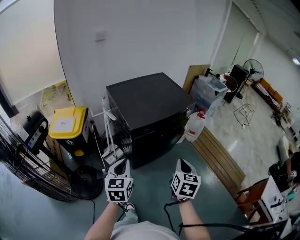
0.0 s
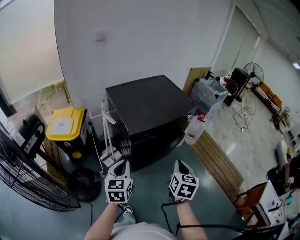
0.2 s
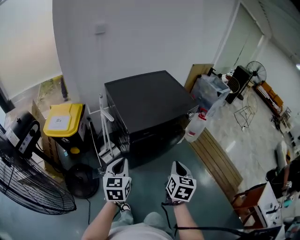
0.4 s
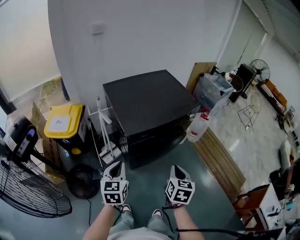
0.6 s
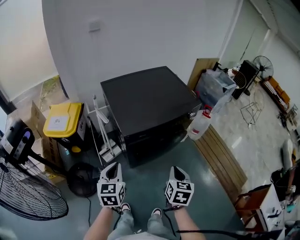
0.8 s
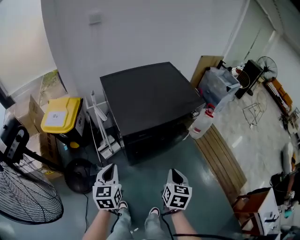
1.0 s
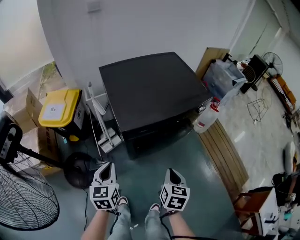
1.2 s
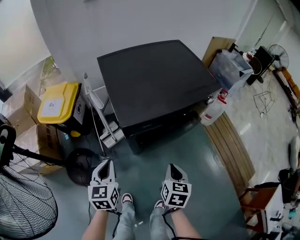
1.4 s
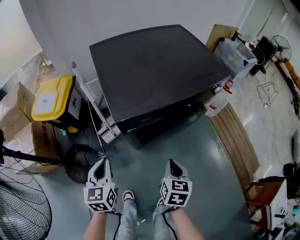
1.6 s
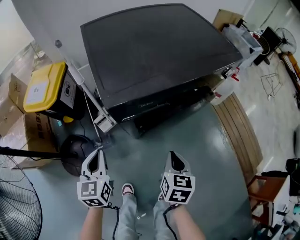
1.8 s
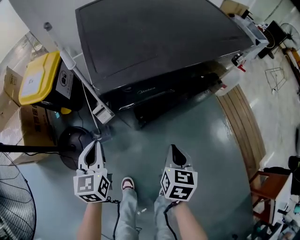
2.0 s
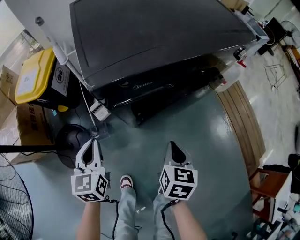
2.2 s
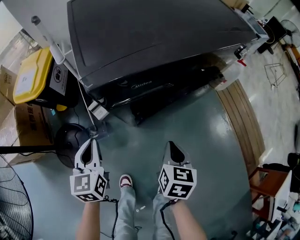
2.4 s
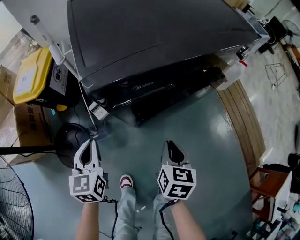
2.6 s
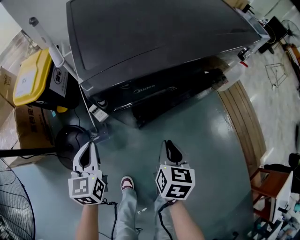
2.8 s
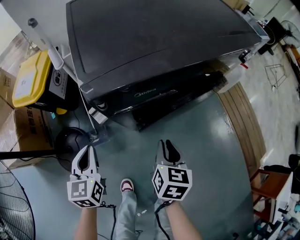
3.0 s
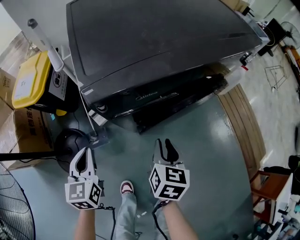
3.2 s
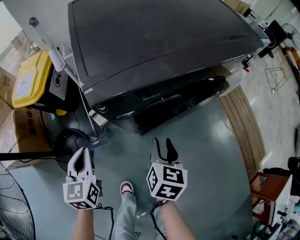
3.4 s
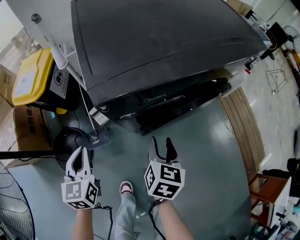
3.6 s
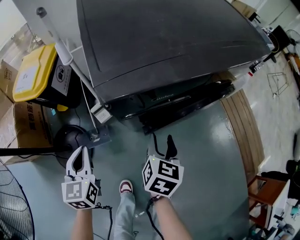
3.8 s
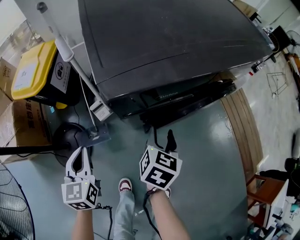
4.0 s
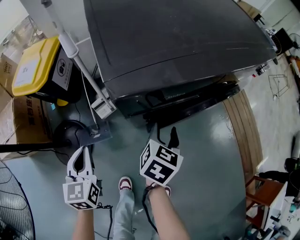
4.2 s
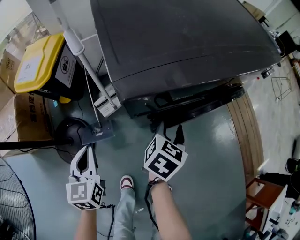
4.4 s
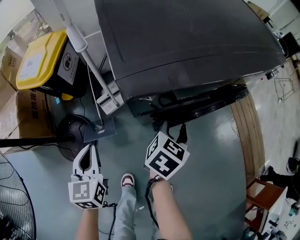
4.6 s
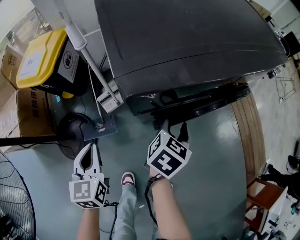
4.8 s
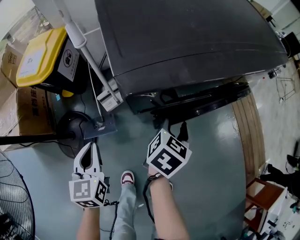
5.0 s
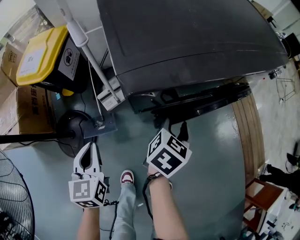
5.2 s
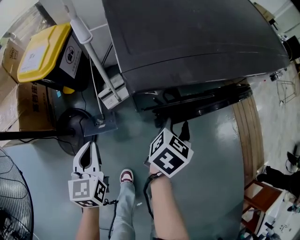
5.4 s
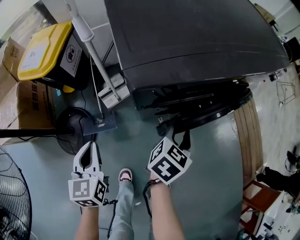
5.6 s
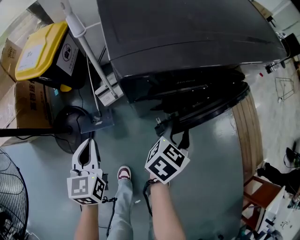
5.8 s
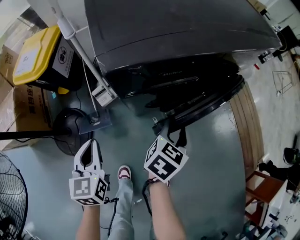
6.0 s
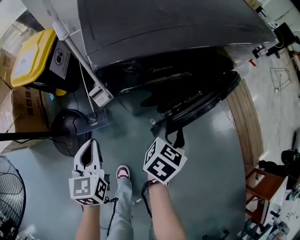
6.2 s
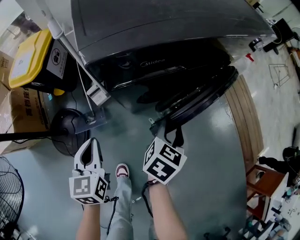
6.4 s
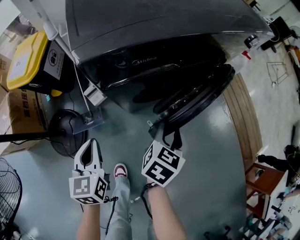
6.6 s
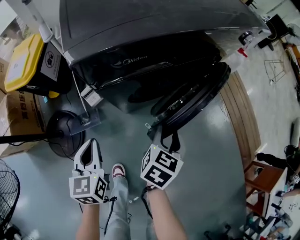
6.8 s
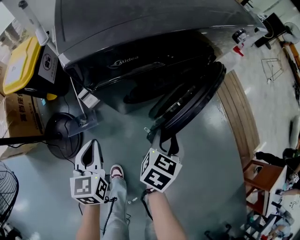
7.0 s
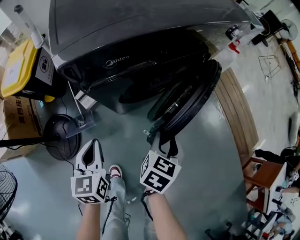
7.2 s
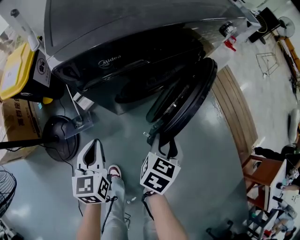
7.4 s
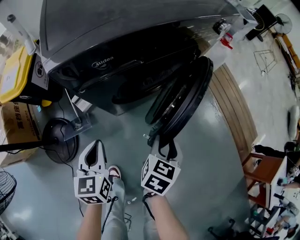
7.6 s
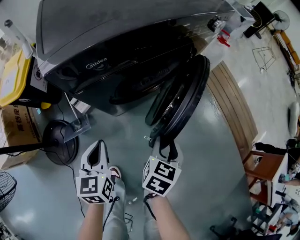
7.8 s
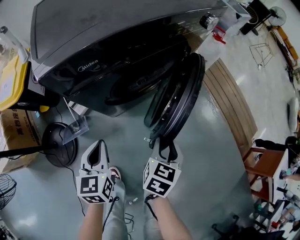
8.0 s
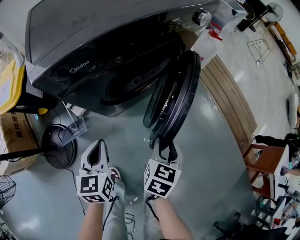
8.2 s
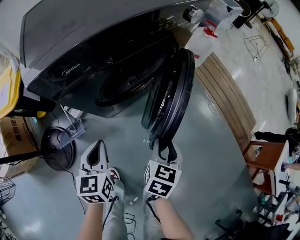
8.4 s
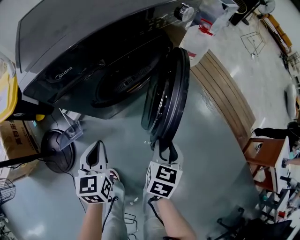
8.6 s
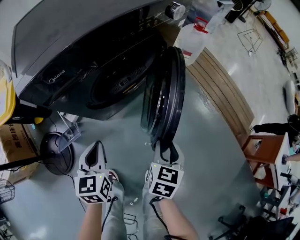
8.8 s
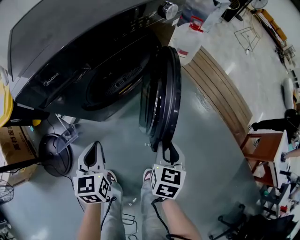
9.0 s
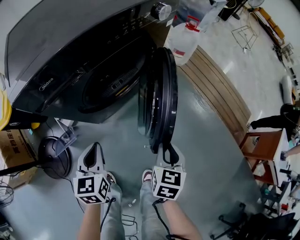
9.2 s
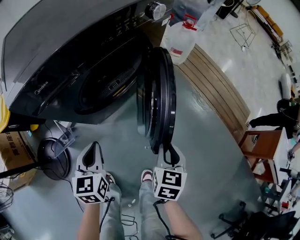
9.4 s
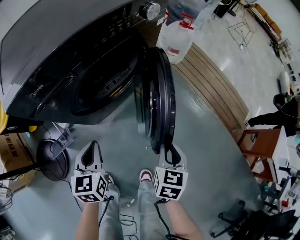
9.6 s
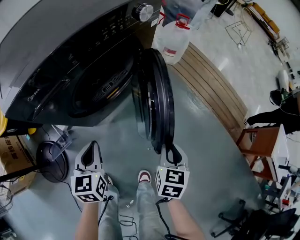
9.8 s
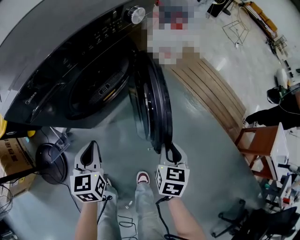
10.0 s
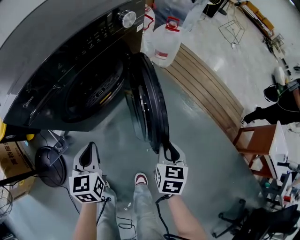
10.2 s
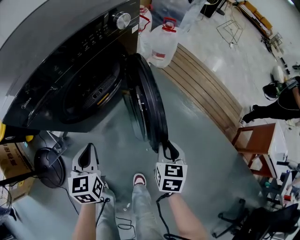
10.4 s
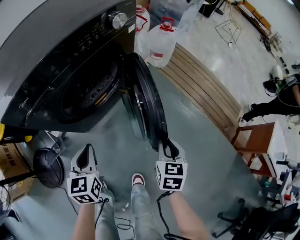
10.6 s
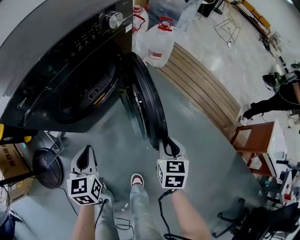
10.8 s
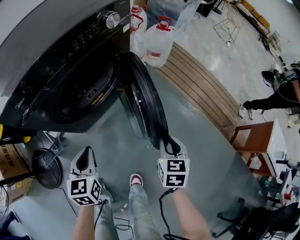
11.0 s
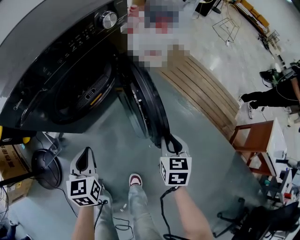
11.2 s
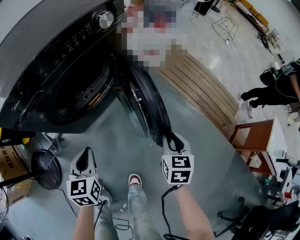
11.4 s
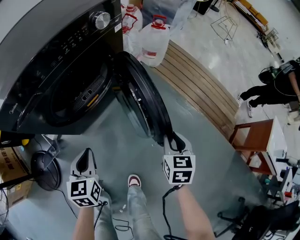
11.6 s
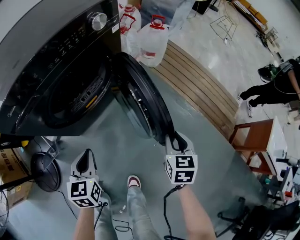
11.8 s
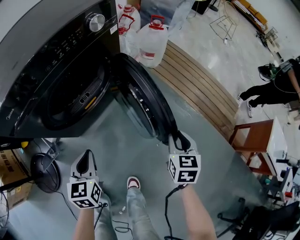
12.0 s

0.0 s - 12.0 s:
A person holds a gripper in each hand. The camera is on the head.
0.0 s - 1.6 s: The grippers both shift downward and forward by about 25 cm.
1.6 s - 3.0 s: The right gripper is displaced downward and forward by approximately 15 cm, while the left gripper goes approximately 10 cm downward.
3.0 s - 4.4 s: The right gripper goes approximately 10 cm forward, and opens; the left gripper heads to the left, covering approximately 5 cm.
4.4 s - 6.0 s: The right gripper shifts approximately 5 cm backward.
6.0 s - 7.6 s: The right gripper shifts roughly 15 cm to the right and backward, while the left gripper is displaced to the right by some 15 cm.
7.6 s - 9.0 s: The two grippers go about 10 cm to the right.
9.0 s - 10.4 s: The two grippers go some 10 cm to the right.
10.4 s - 12.0 s: The left gripper heads to the right, covering approximately 5 cm. Meanwhile the right gripper shifts some 10 cm to the right.

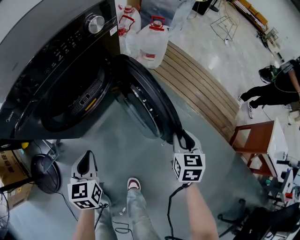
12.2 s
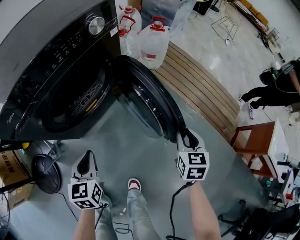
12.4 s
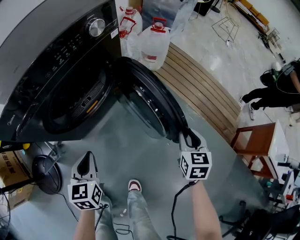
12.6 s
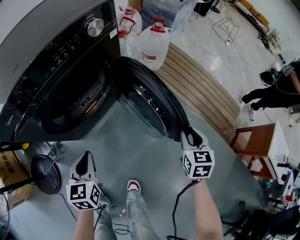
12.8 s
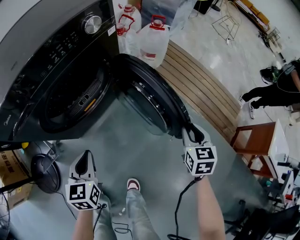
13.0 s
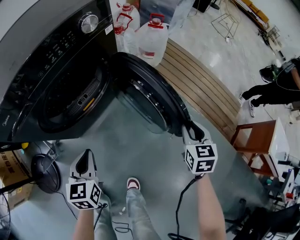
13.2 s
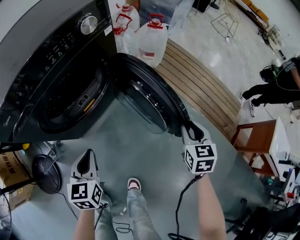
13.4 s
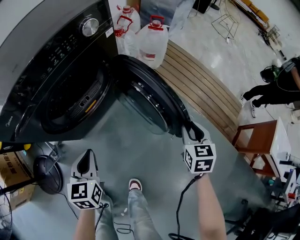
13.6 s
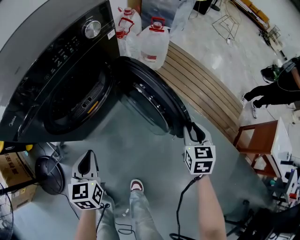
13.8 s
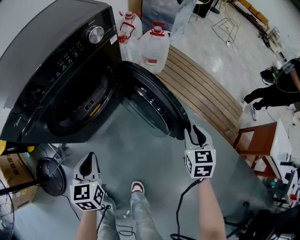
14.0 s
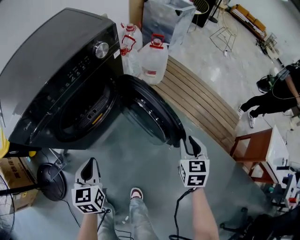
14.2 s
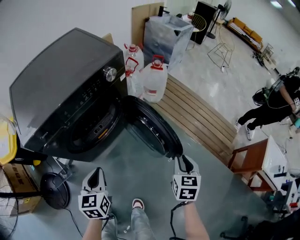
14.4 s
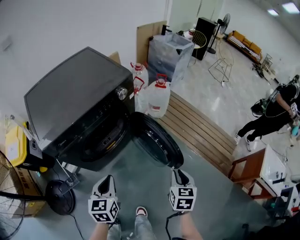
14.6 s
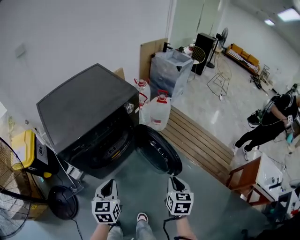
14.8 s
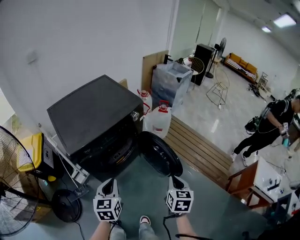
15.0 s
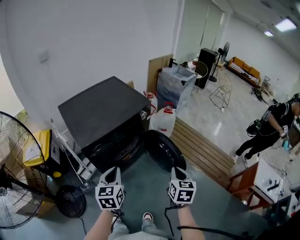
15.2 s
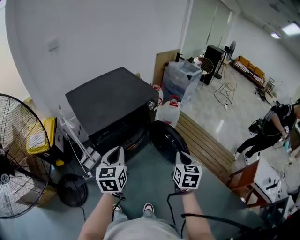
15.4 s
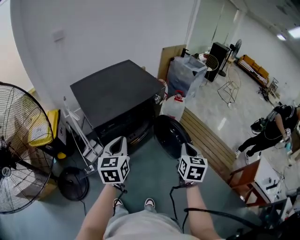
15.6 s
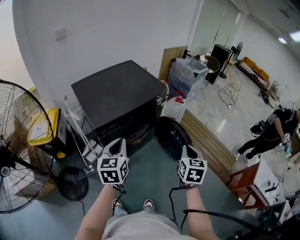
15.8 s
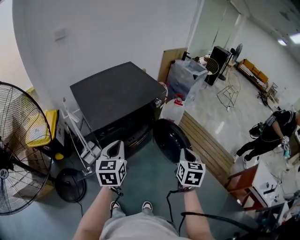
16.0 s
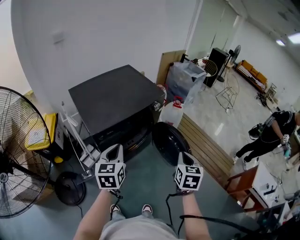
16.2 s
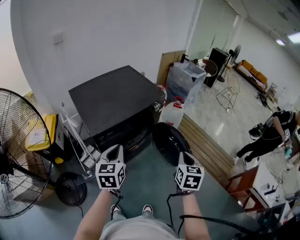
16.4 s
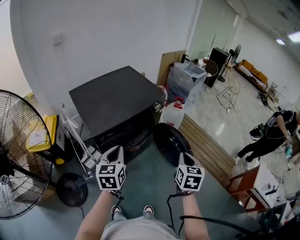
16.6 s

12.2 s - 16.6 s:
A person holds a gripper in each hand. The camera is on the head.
12.2 s - 13.6 s: The right gripper changes place by roughly 5 cm.
13.6 s - 15.2 s: The right gripper is displaced upward, to the left and backward by roughly 40 cm, and closes up, while the left gripper moves upward, some 35 cm.
15.2 s - 16.6 s: The right gripper shifts by about 5 cm; the left gripper travels to the left by some 5 cm.

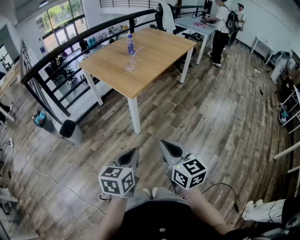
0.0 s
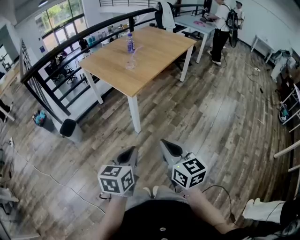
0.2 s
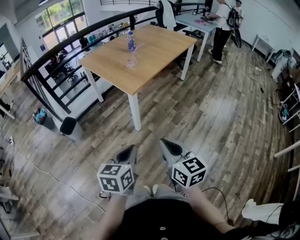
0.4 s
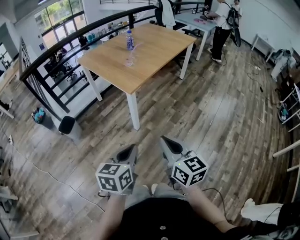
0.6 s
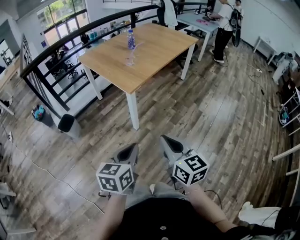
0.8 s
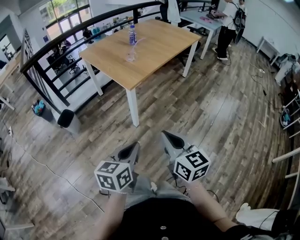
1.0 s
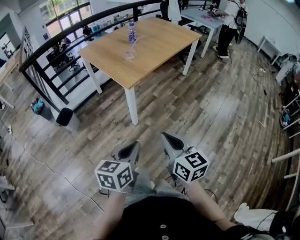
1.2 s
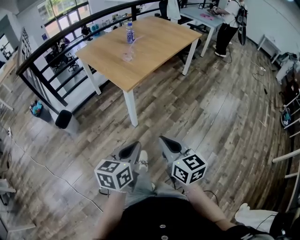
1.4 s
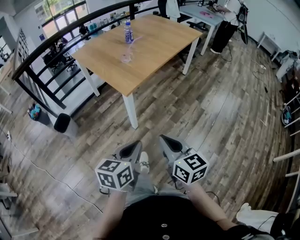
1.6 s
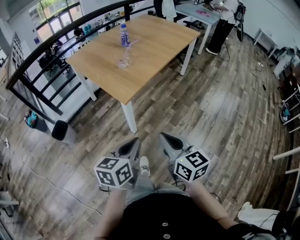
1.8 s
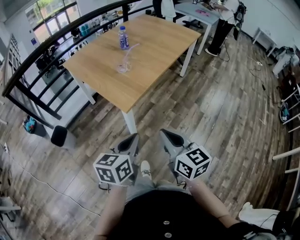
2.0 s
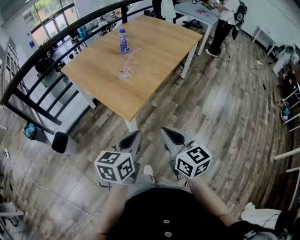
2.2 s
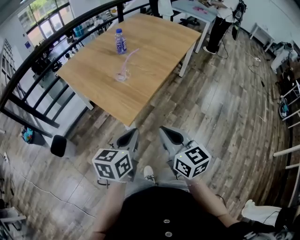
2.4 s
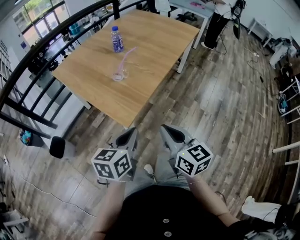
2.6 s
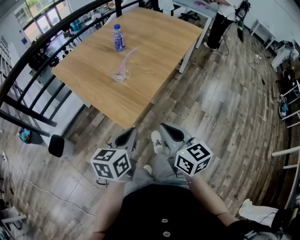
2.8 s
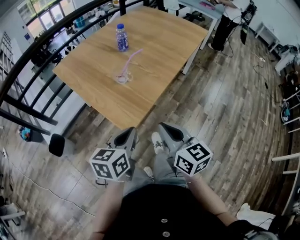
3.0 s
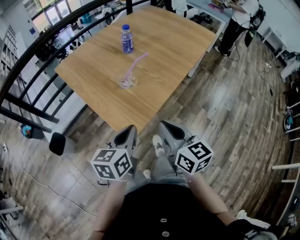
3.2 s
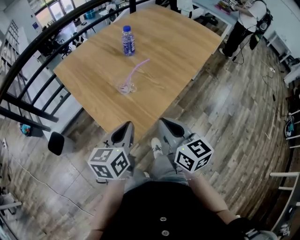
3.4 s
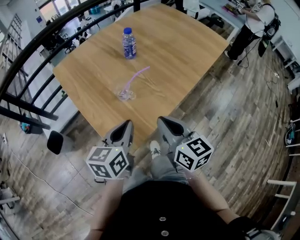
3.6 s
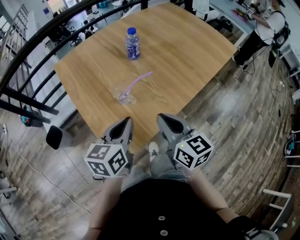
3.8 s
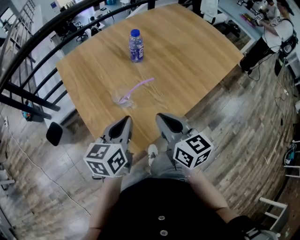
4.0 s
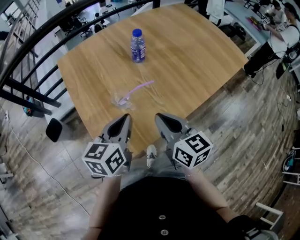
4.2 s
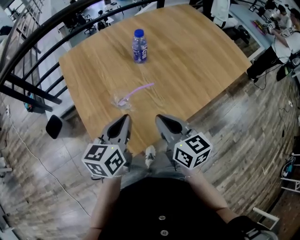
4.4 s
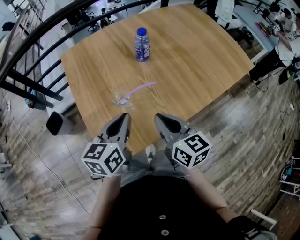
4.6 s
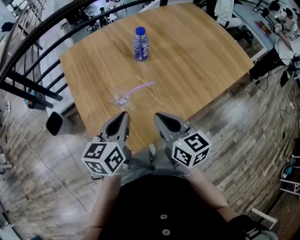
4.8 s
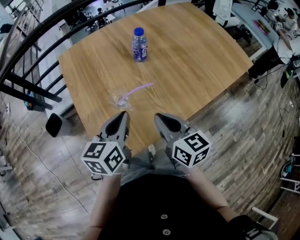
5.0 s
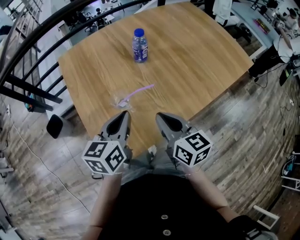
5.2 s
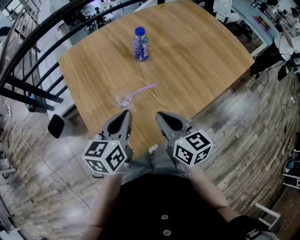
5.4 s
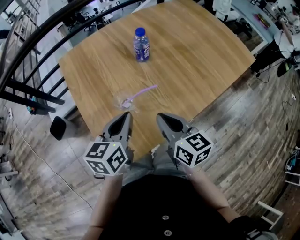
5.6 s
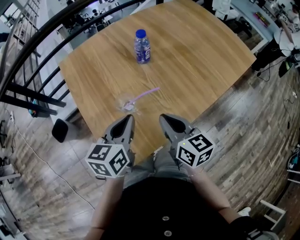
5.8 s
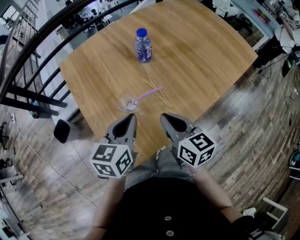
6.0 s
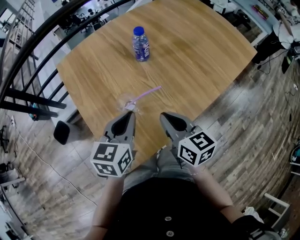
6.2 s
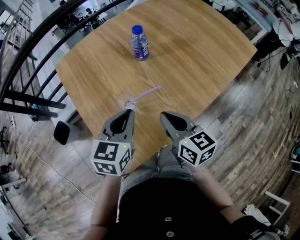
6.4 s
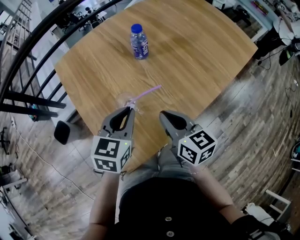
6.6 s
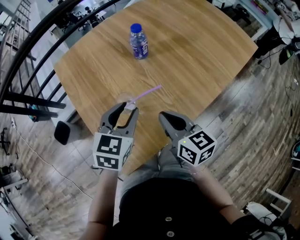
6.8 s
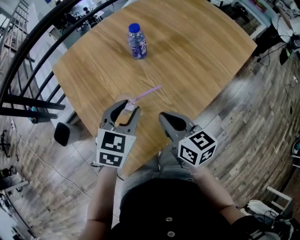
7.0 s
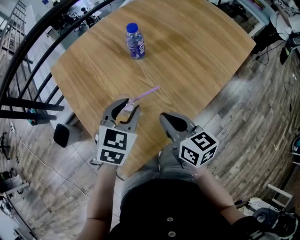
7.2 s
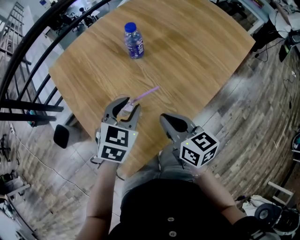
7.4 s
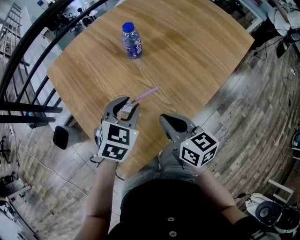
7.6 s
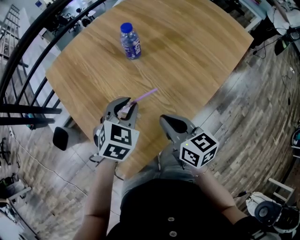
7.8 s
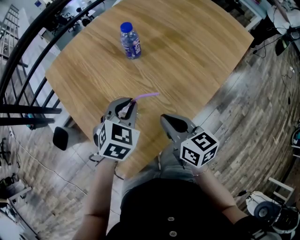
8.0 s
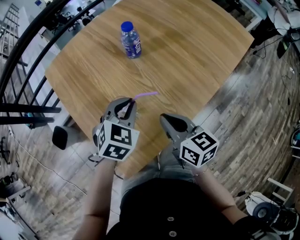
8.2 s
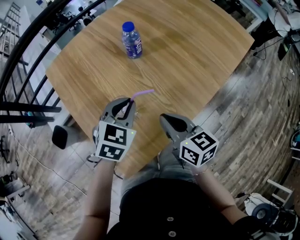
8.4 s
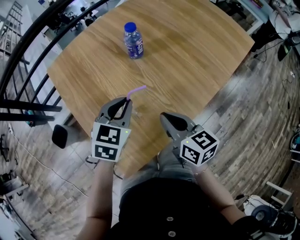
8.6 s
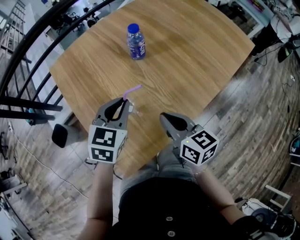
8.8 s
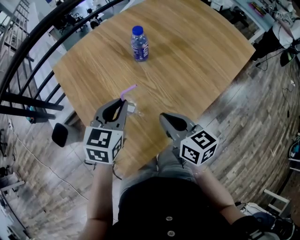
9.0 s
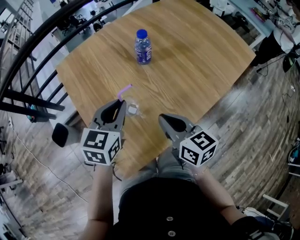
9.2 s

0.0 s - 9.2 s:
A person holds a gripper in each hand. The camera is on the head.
0.0 s - 1.6 s: The right gripper heads forward, covering approximately 10 cm, while the left gripper is displaced forward and to the right by about 10 cm.
1.6 s - 3.0 s: The two grippers go approximately 35 cm forward.
3.0 s - 4.6 s: The left gripper ends up approximately 30 cm from where it was, and turns by roughly 30 degrees. Meanwhile the right gripper ends up roughly 30 cm from where it was, and rotates some 20 degrees.
4.6 s - 6.2 s: There are only small adjustments of the grippers.
6.2 s - 7.6 s: The left gripper is displaced downward and forward by approximately 5 cm, rotates about 30 degrees, and opens.
7.6 s - 9.2 s: The left gripper heads upward and to the left, covering roughly 10 cm, rotates some 30 degrees, and closes up.
